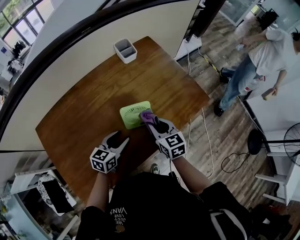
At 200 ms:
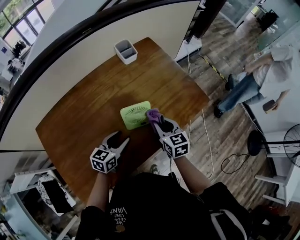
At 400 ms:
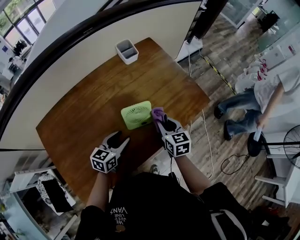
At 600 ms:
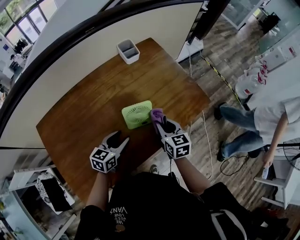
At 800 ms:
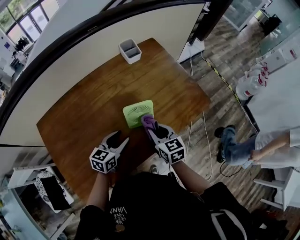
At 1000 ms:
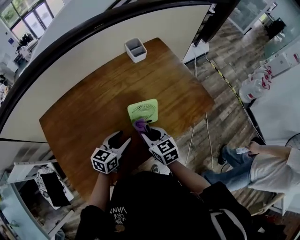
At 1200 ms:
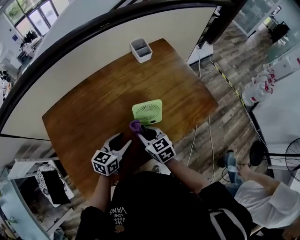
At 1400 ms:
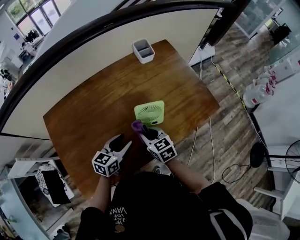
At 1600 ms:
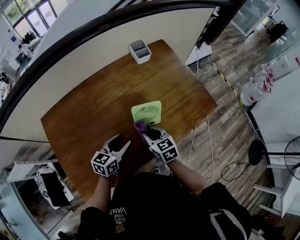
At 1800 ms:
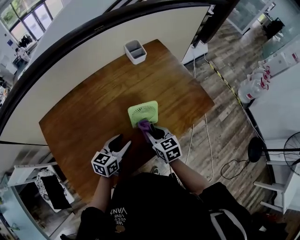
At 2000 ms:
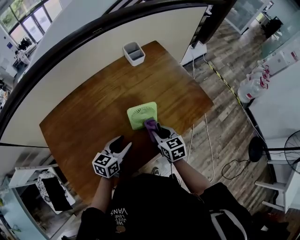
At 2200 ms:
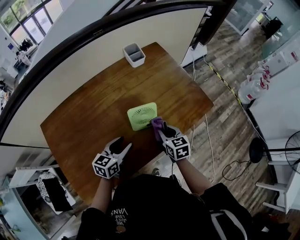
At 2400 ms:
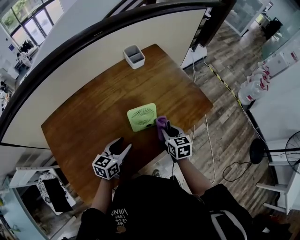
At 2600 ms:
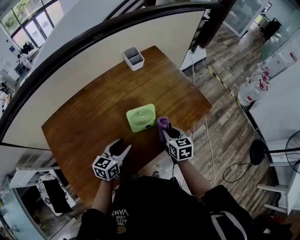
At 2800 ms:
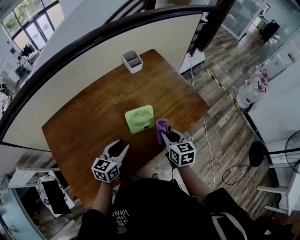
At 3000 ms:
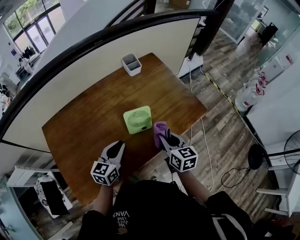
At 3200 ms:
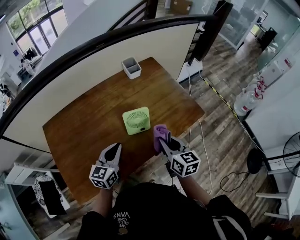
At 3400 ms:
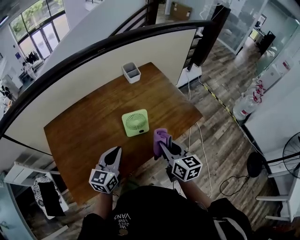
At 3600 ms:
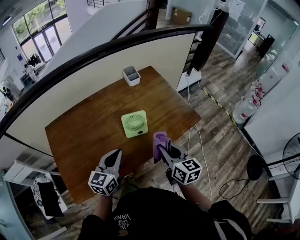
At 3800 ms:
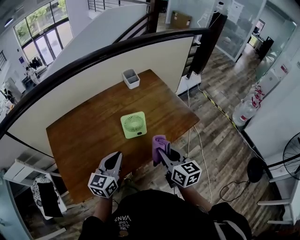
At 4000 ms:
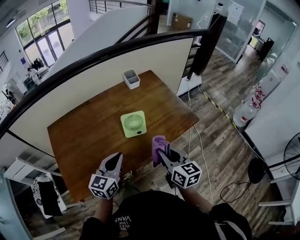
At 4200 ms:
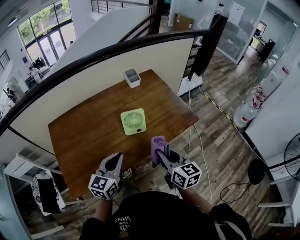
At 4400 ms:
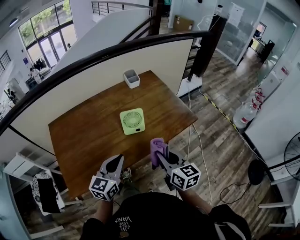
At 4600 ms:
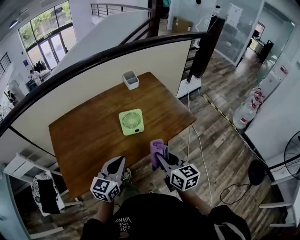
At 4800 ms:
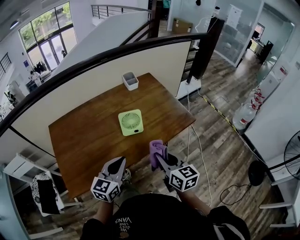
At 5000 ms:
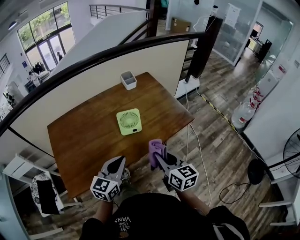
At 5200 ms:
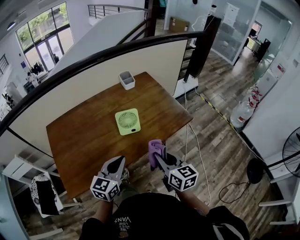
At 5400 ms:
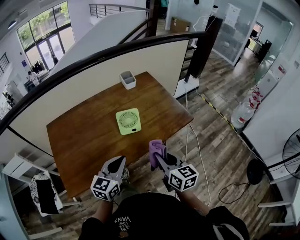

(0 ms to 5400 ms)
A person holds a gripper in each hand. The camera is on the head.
0 ms - 1400 ms: The right gripper is displaced to the left by approximately 10 cm.
1400 ms - 2800 ms: The right gripper is displaced to the right by approximately 15 cm, and rotates roughly 20 degrees.
2800 ms - 4000 ms: The left gripper goes roughly 15 cm upward and backward, and closes, while the right gripper moves backward and upward, some 15 cm.
4000 ms - 5400 ms: The left gripper ends up about 5 cm from where it was.

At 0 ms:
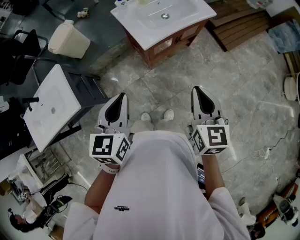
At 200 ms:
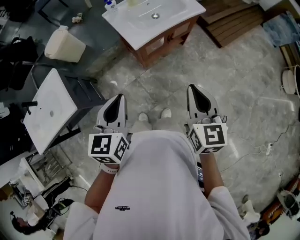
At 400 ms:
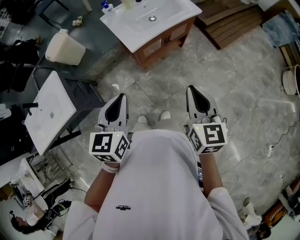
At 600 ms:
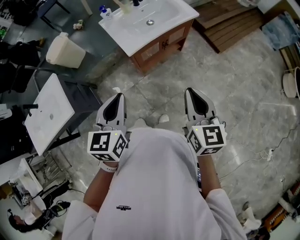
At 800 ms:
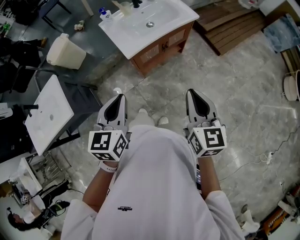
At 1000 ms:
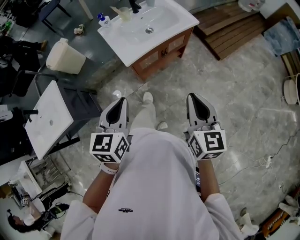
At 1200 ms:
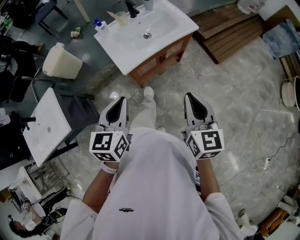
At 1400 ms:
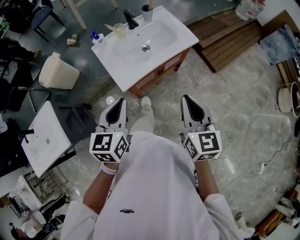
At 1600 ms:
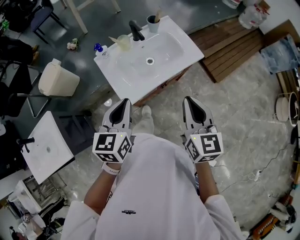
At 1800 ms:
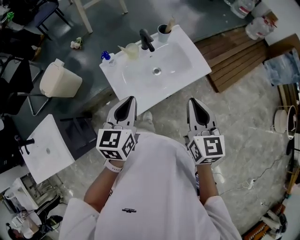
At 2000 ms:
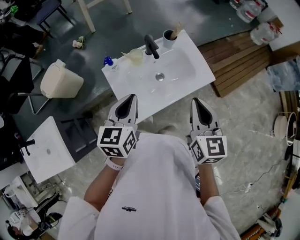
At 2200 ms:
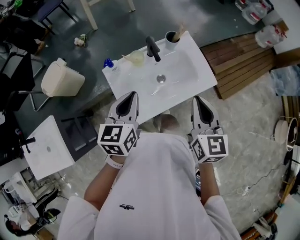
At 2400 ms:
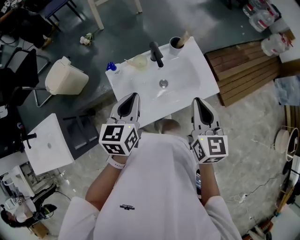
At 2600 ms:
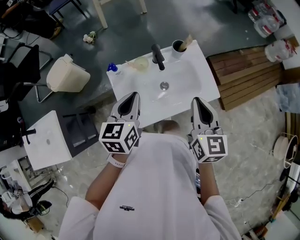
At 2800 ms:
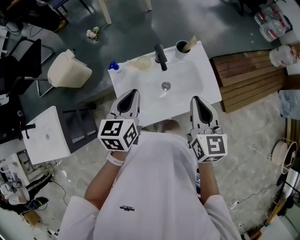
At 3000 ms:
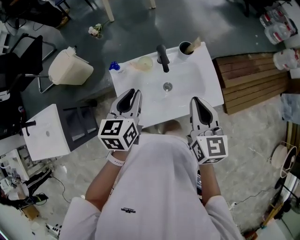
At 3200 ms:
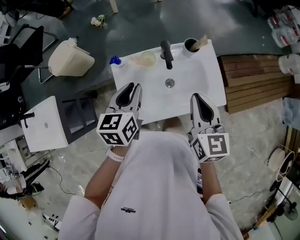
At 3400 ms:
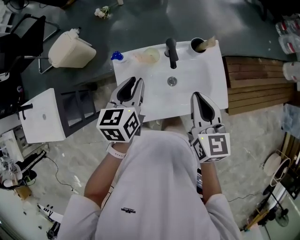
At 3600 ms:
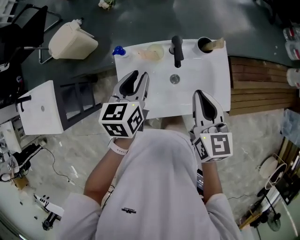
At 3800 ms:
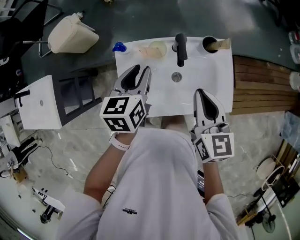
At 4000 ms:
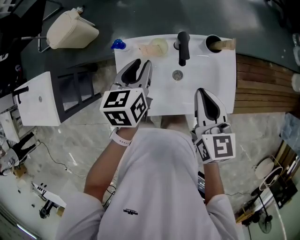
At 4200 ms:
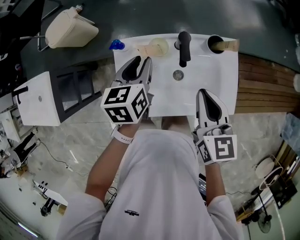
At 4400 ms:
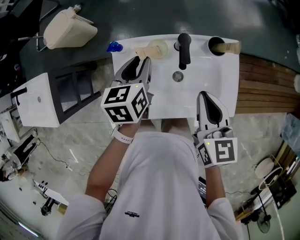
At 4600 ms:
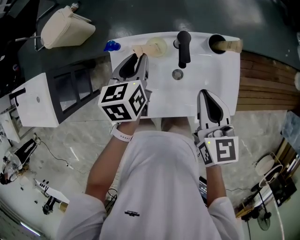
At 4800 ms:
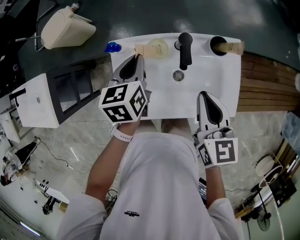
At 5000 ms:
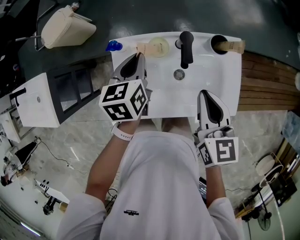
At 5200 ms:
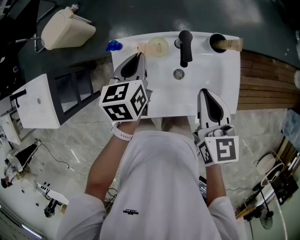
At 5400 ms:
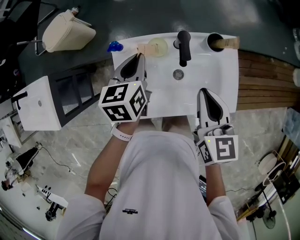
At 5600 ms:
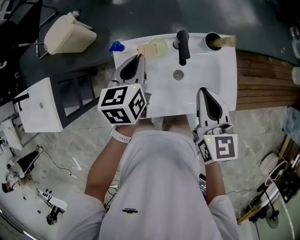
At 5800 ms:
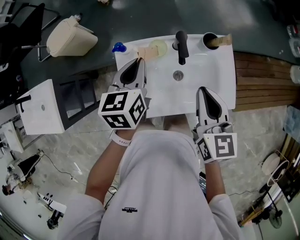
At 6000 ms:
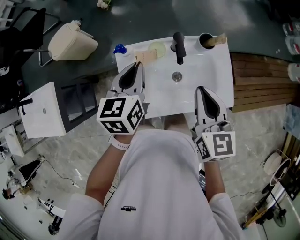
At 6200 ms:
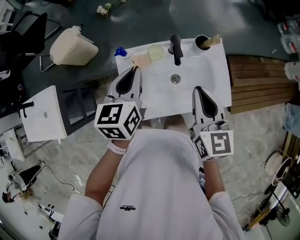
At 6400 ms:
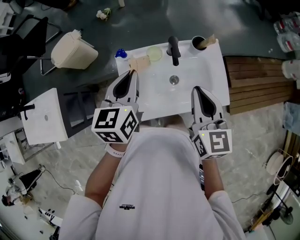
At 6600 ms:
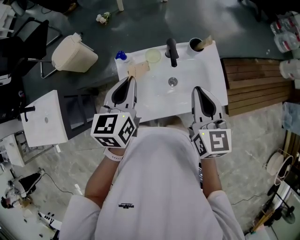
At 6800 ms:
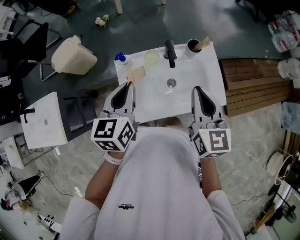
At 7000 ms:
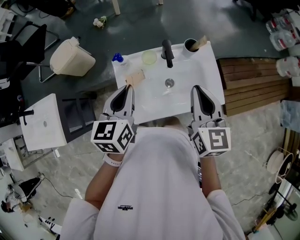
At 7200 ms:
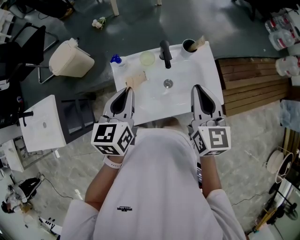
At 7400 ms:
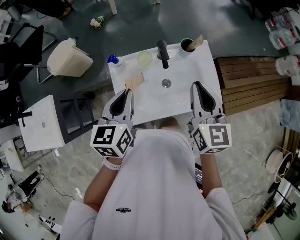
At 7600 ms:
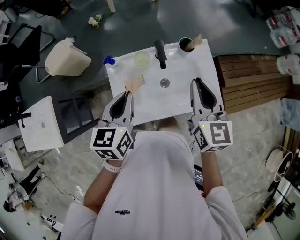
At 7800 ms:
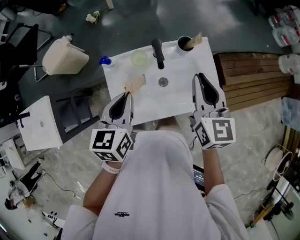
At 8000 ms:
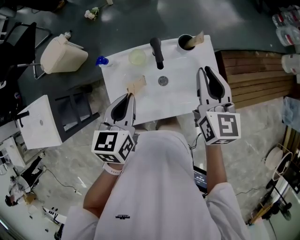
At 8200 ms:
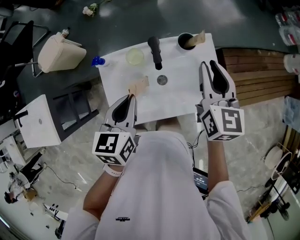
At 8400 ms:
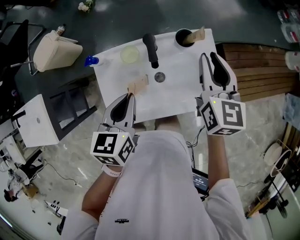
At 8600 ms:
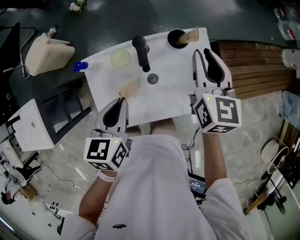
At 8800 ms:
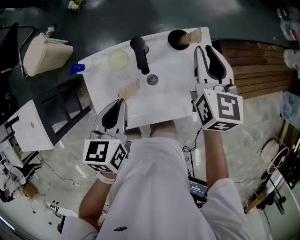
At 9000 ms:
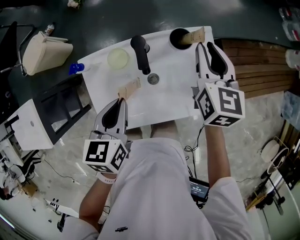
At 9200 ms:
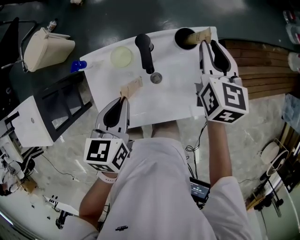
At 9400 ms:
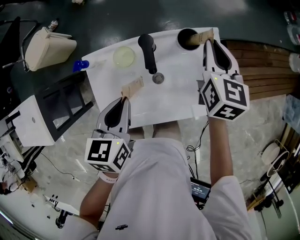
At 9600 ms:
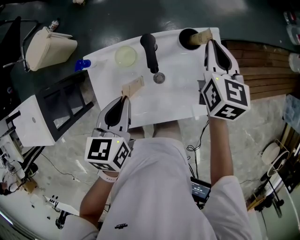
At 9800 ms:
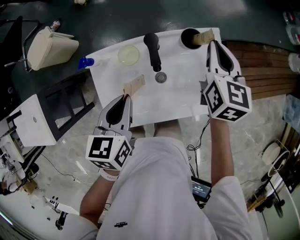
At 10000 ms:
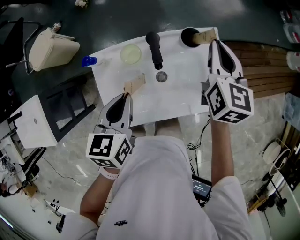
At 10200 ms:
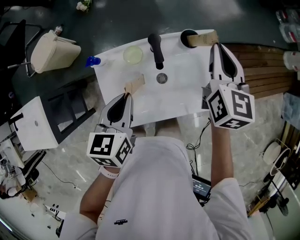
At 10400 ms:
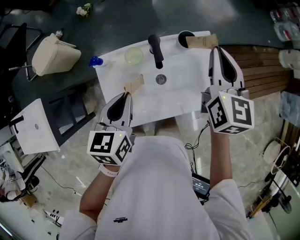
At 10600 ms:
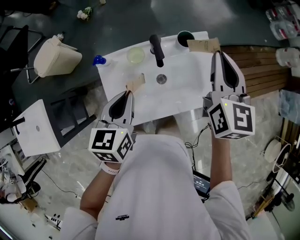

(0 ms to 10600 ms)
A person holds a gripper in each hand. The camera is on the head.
0 ms - 1600 ms: The two grippers go some 25 cm forward.
1600 ms - 3000 ms: The grippers both shift forward by roughly 25 cm.
3000 ms - 4600 ms: The right gripper heads downward and forward, covering approximately 15 cm. Meanwhile the left gripper shifts roughly 15 cm forward and downward, and swivels roughly 20 degrees.
4600 ms - 6000 ms: The left gripper travels upward and backward by about 10 cm, and closes; the right gripper shifts some 5 cm upward.
6000 ms - 7600 ms: The left gripper heads backward, covering roughly 10 cm. The right gripper heads to the right, covering approximately 5 cm.
7600 ms - 9000 ms: The right gripper goes about 20 cm forward and downward, while the left gripper goes approximately 10 cm downward and forward.
9000 ms - 10600 ms: The right gripper heads upward and backward, covering some 15 cm. The left gripper heads upward, covering about 5 cm.

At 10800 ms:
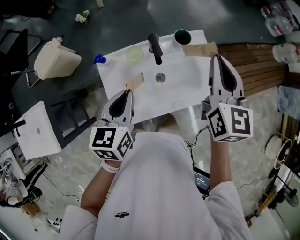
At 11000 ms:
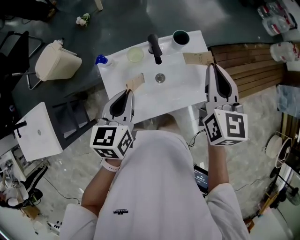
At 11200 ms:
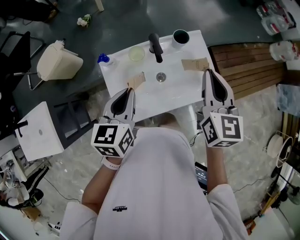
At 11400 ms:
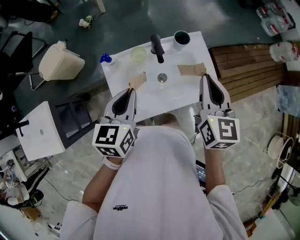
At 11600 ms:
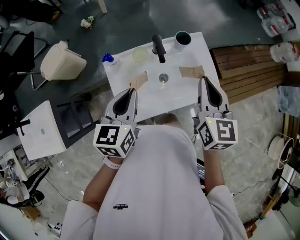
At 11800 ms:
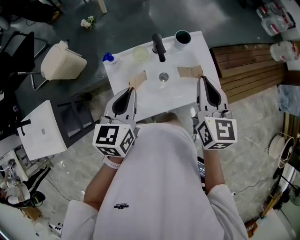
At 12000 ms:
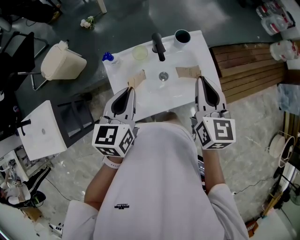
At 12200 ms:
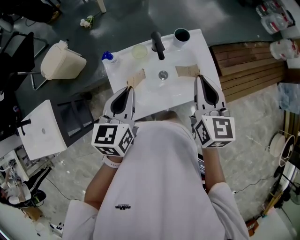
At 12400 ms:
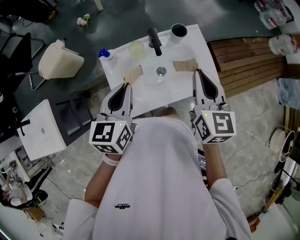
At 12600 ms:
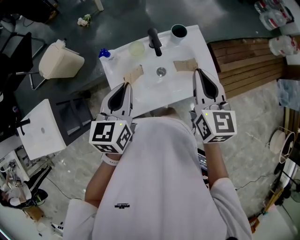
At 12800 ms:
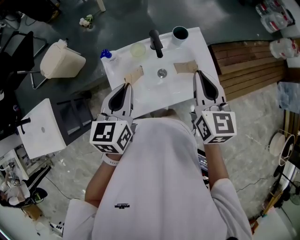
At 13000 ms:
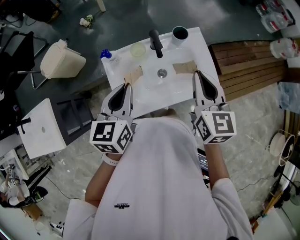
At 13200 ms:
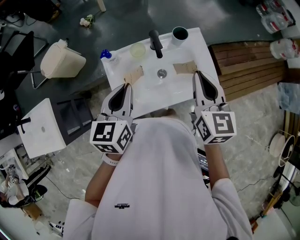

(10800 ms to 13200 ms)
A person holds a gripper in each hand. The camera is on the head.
10800 ms - 12000 ms: The right gripper is displaced backward by about 10 cm. Meanwhile the left gripper changes place by roughly 5 cm.
12000 ms - 13200 ms: Both grippers stay put.

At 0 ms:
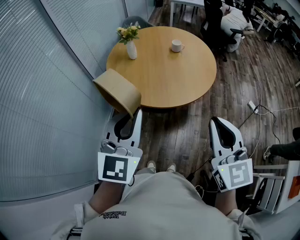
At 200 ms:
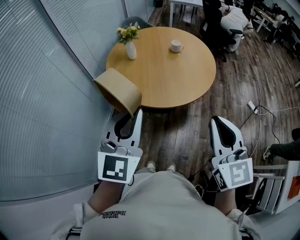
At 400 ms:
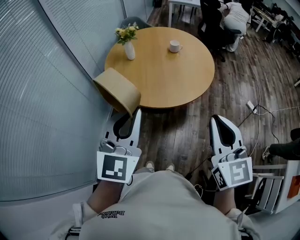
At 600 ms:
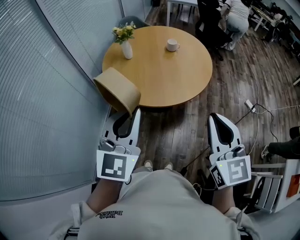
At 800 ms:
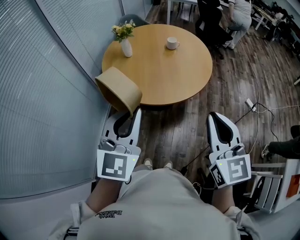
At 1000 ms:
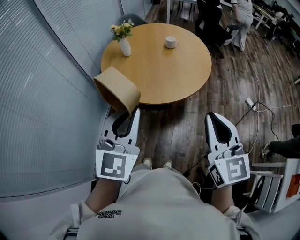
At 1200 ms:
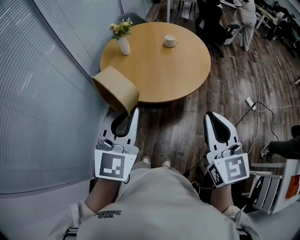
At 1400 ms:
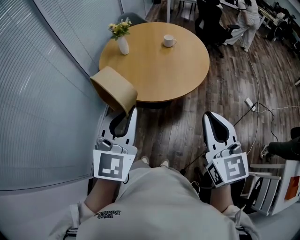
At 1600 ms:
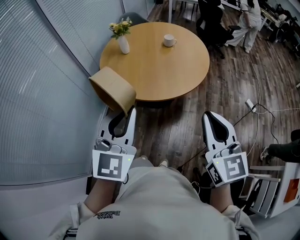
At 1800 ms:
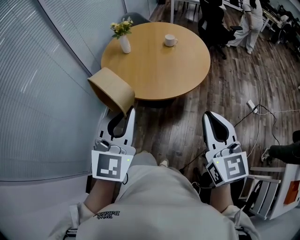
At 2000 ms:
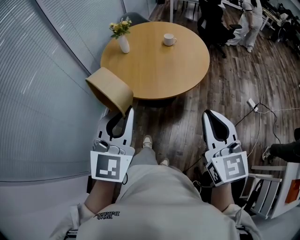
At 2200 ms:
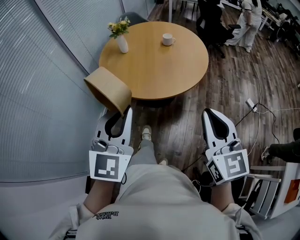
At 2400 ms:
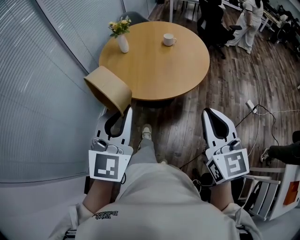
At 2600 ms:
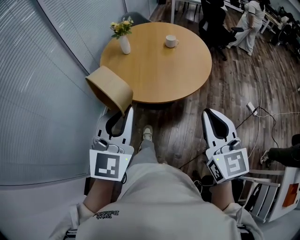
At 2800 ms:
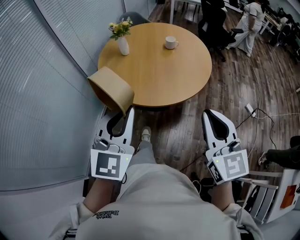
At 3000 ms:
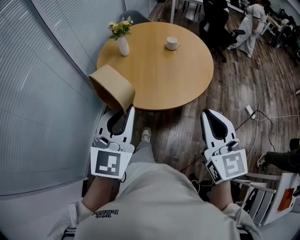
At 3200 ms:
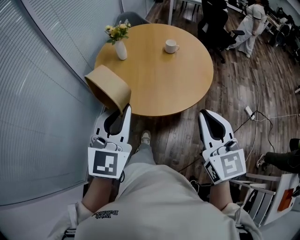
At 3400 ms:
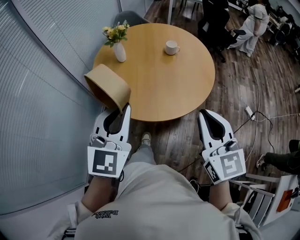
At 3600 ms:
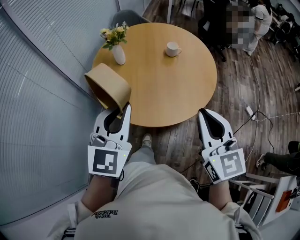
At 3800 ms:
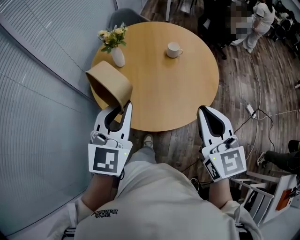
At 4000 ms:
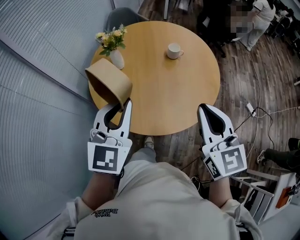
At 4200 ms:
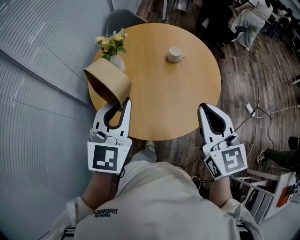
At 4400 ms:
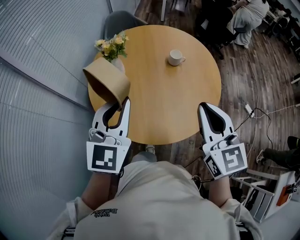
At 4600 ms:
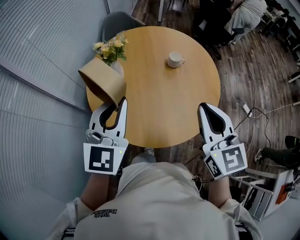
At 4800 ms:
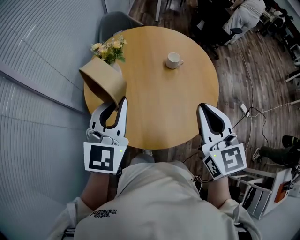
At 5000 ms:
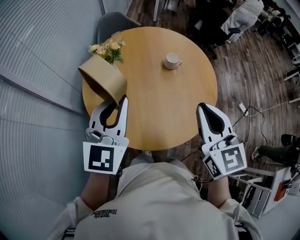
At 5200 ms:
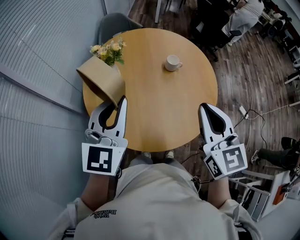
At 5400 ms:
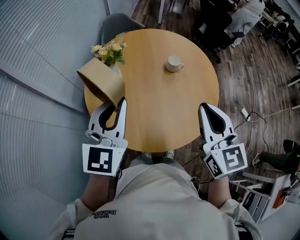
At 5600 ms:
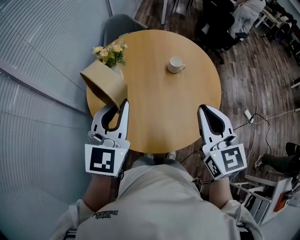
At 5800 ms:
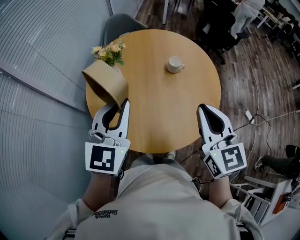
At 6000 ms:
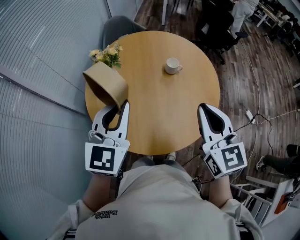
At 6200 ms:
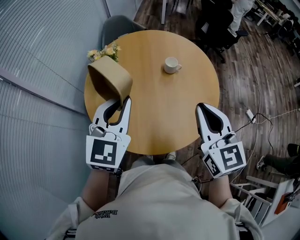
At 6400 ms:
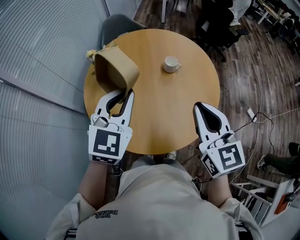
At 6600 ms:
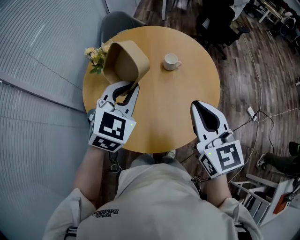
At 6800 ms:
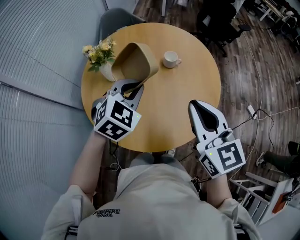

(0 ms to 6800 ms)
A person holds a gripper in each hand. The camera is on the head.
0 ms - 1400 ms: The two grippers go approximately 5 cm to the right.
1400 ms - 2800 ms: The right gripper moves approximately 5 cm.
2800 ms - 4000 ms: Both grippers travel together forward, roughly 25 cm.
4000 ms - 5400 ms: Both grippers move forward, approximately 10 cm.
5400 ms - 6800 ms: The left gripper moves downward, to the right and forward, roughly 15 cm, and tips its fingers downward by some 30 degrees.
